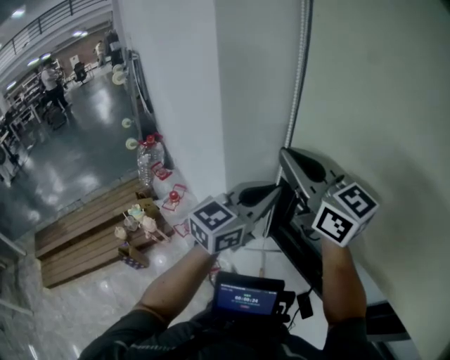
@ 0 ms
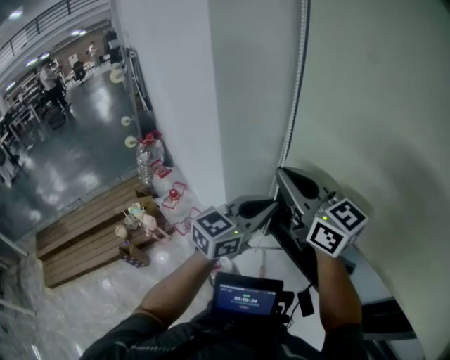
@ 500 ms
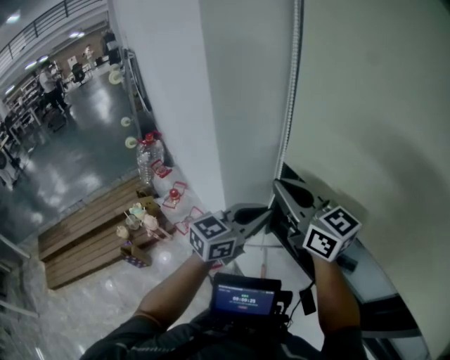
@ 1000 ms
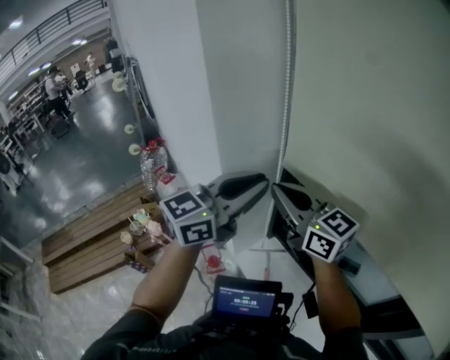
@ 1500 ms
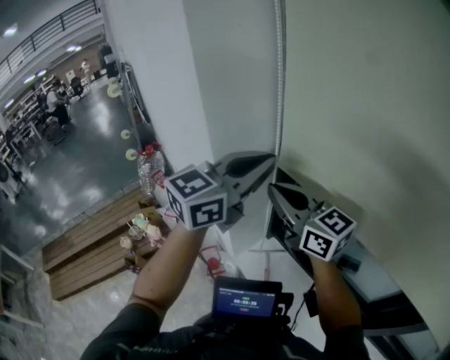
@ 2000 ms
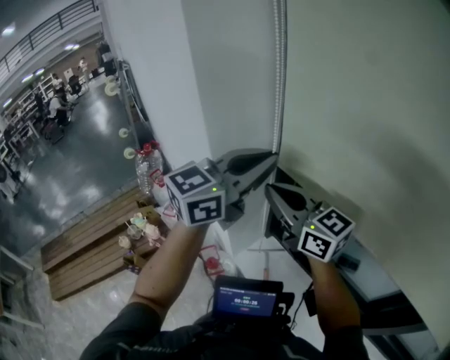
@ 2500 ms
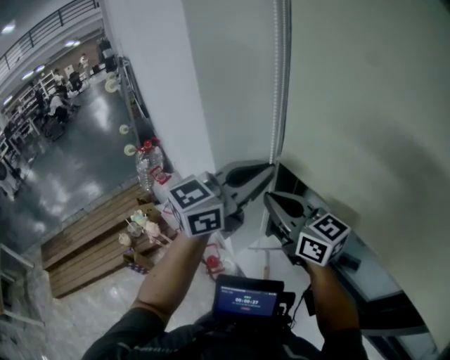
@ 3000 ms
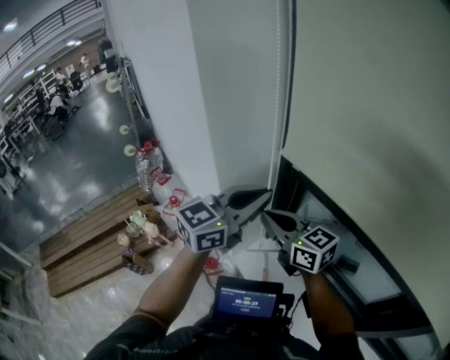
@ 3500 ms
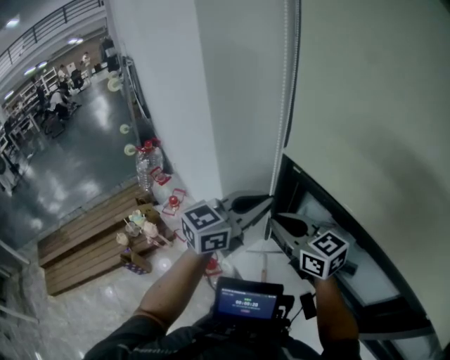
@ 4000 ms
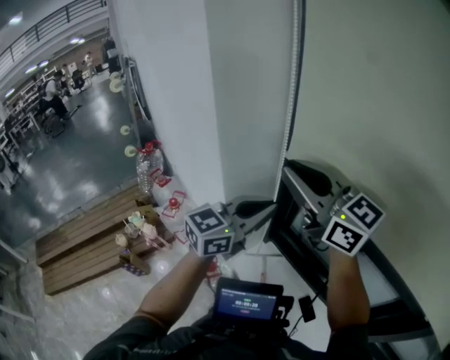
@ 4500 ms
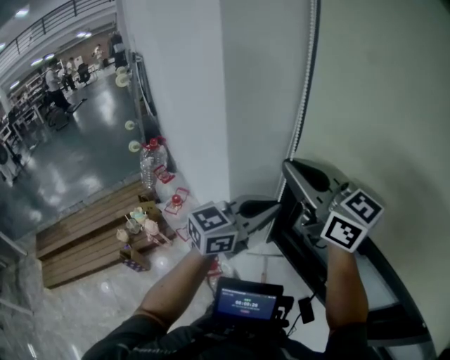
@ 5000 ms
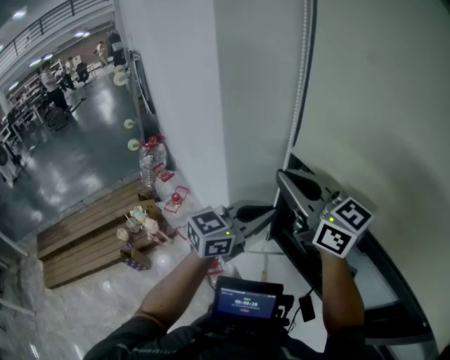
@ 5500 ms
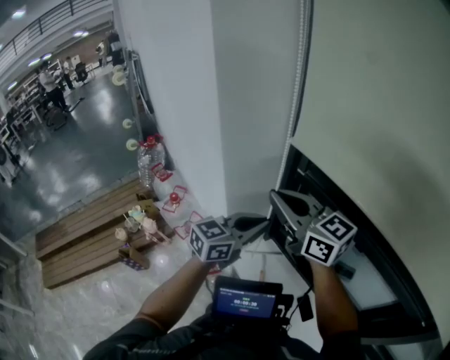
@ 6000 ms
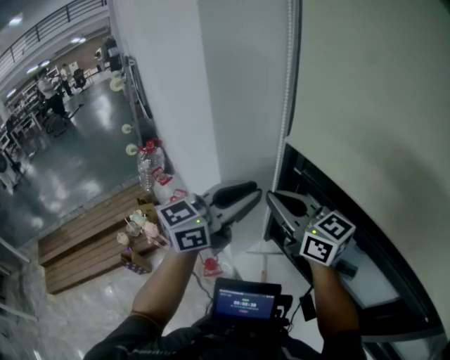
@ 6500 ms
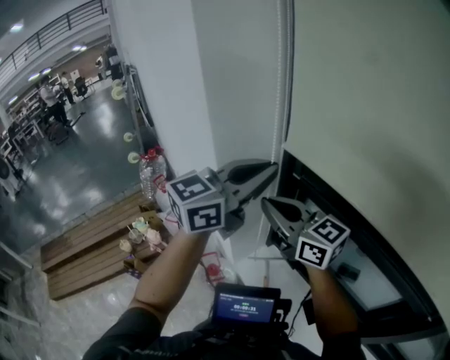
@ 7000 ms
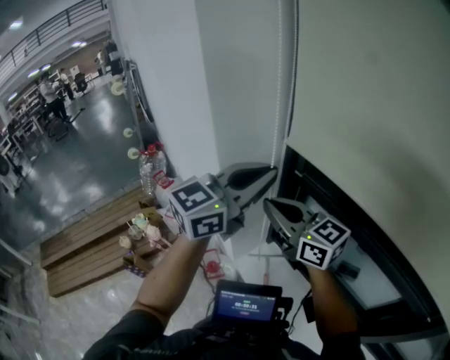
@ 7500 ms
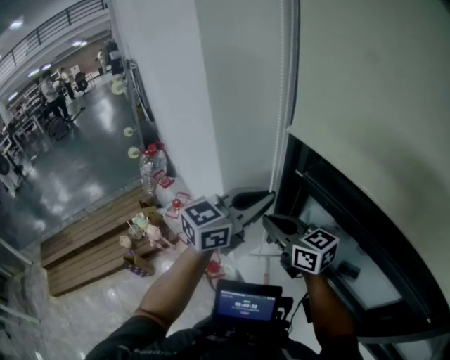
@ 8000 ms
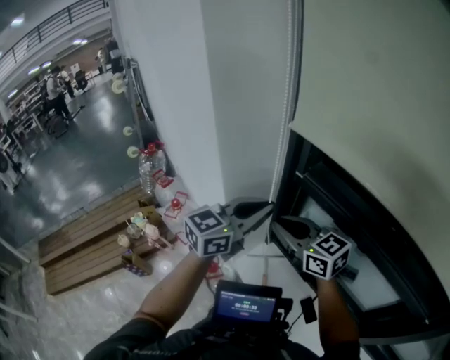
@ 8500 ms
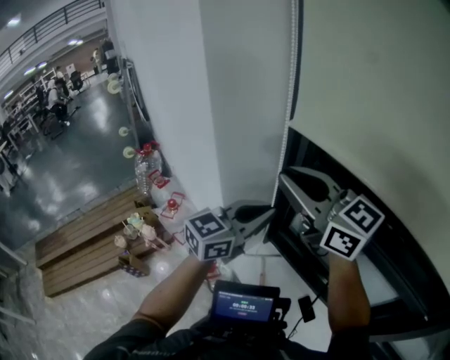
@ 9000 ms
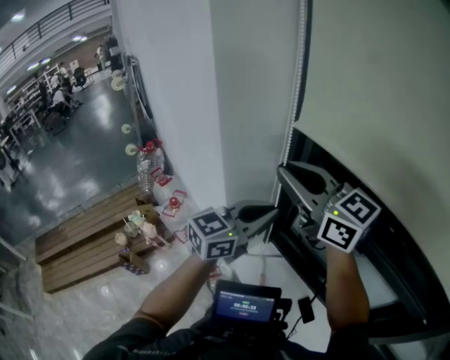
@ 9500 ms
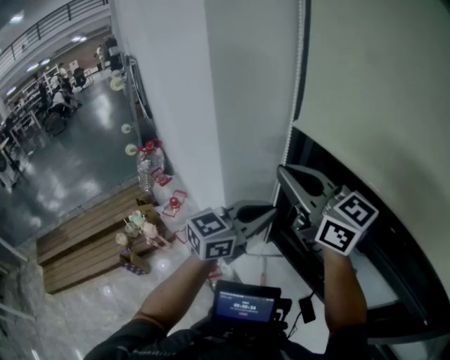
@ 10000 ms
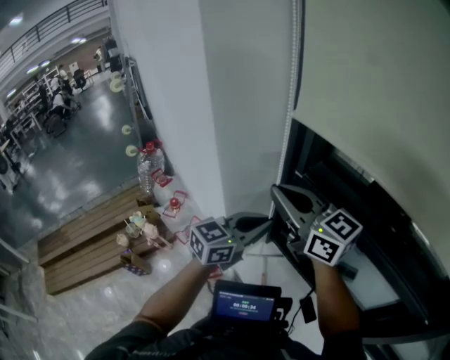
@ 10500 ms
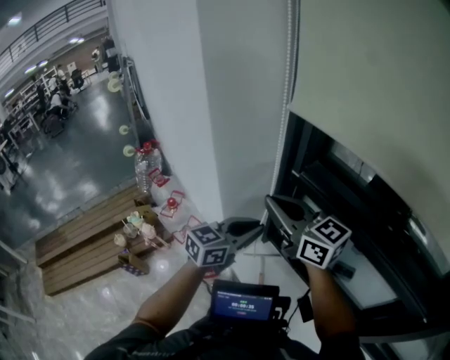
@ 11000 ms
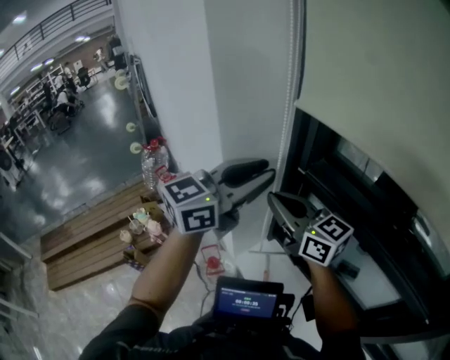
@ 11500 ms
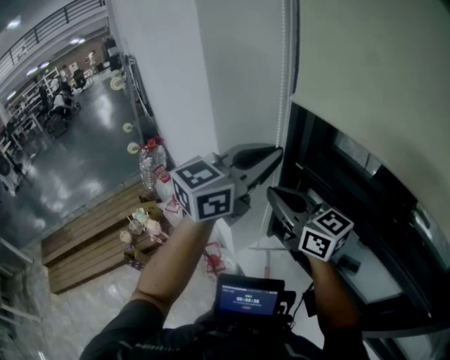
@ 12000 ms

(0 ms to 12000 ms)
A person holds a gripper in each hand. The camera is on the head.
0 ms - 2000 ms: The left gripper travels upward by roughly 10 cm, while the right gripper moves downward, roughly 10 cm.
2000 ms - 4000 ms: The grippers both shift downward by some 10 cm.
4000 ms - 6000 ms: The left gripper shifts approximately 10 cm downward. Meanwhile the right gripper is displaced upward by roughly 10 cm.
6000 ms - 8000 ms: The left gripper goes approximately 10 cm upward, and opens, then closes again; the right gripper heads downward, covering about 10 cm.
8000 ms - 10000 ms: The right gripper travels upward by roughly 20 cm.
10000 ms - 12000 ms: The right gripper shifts about 10 cm downward. The left gripper shifts some 10 cm upward, and opens and closes again.

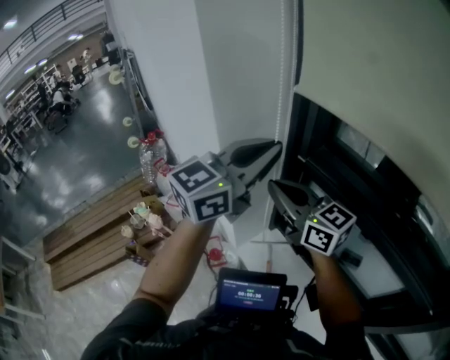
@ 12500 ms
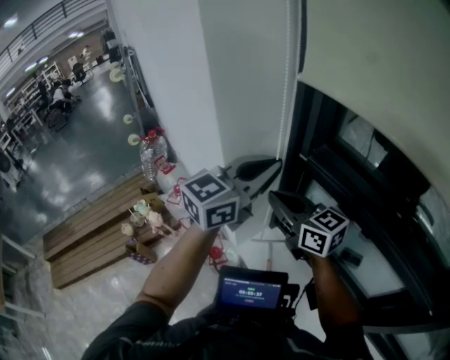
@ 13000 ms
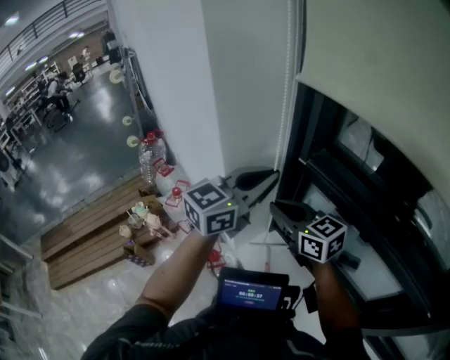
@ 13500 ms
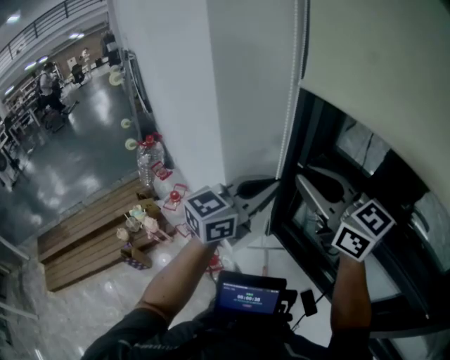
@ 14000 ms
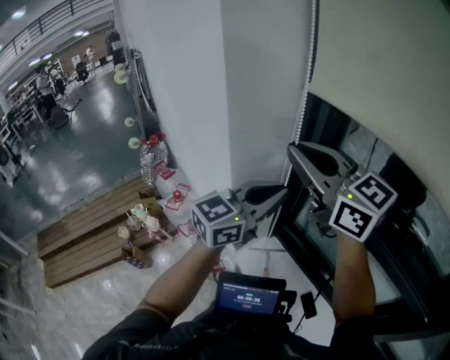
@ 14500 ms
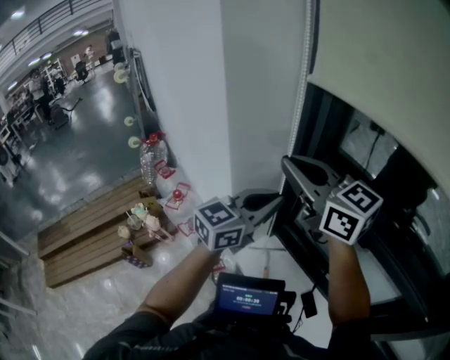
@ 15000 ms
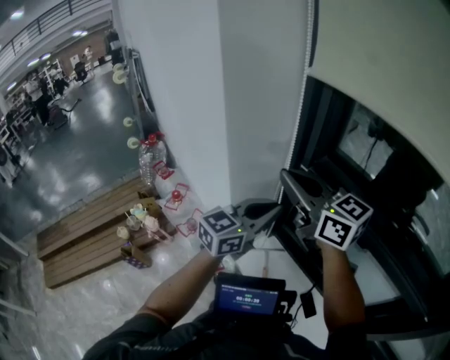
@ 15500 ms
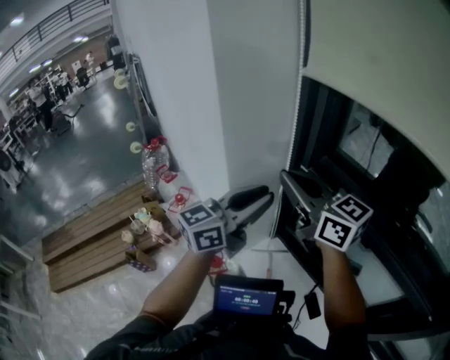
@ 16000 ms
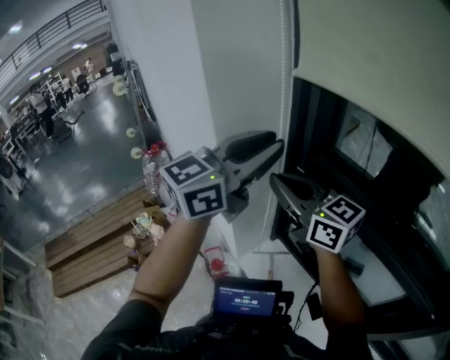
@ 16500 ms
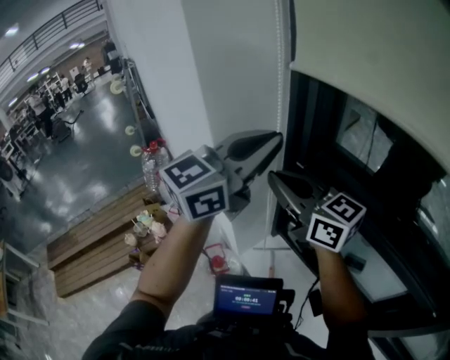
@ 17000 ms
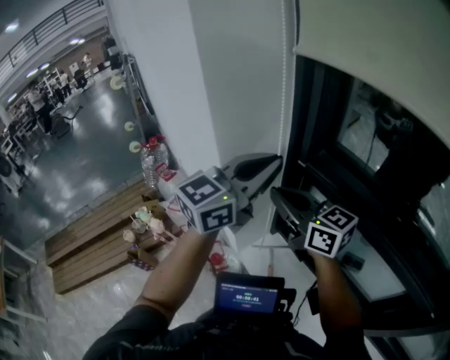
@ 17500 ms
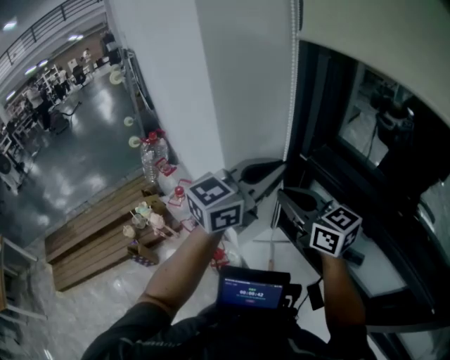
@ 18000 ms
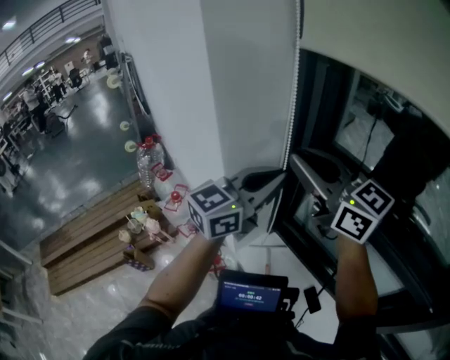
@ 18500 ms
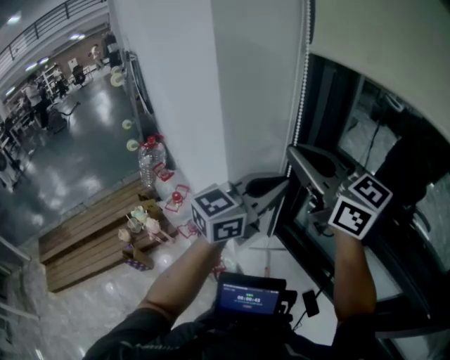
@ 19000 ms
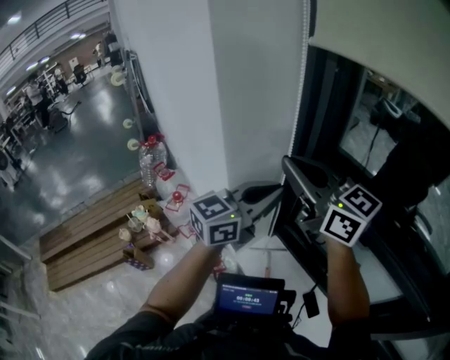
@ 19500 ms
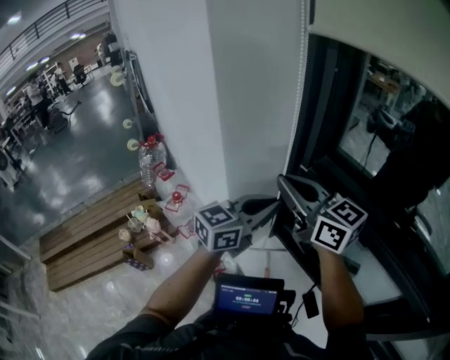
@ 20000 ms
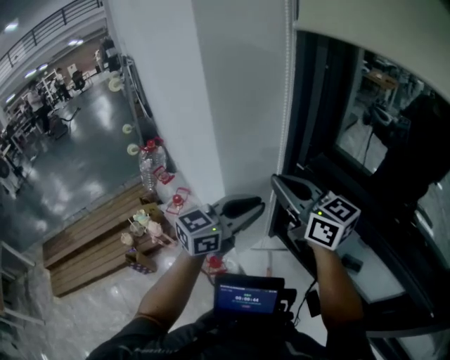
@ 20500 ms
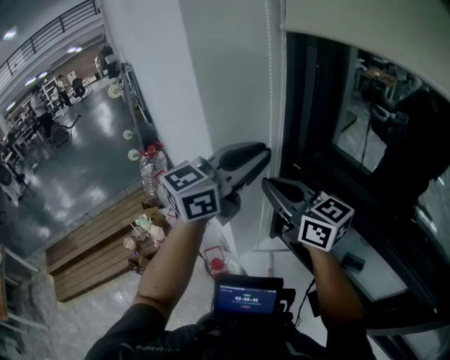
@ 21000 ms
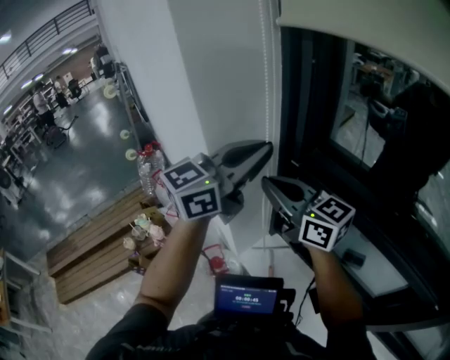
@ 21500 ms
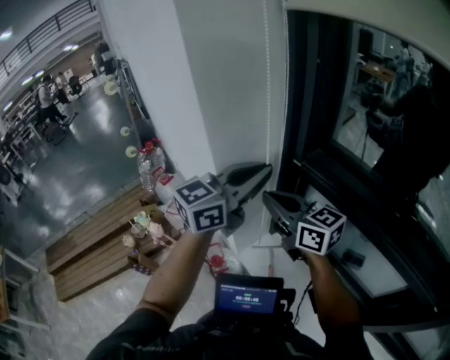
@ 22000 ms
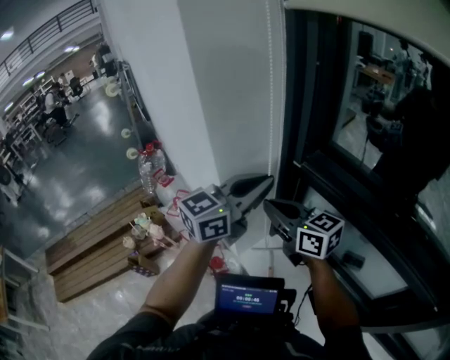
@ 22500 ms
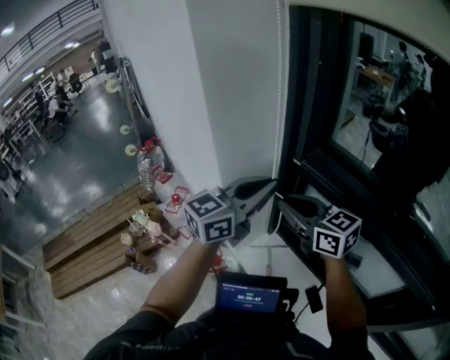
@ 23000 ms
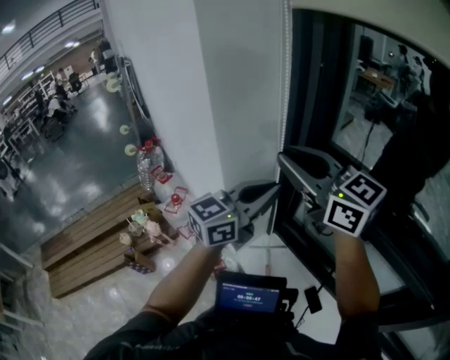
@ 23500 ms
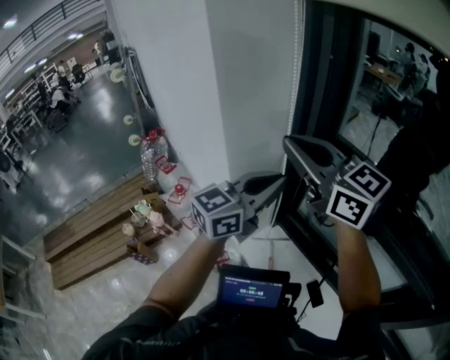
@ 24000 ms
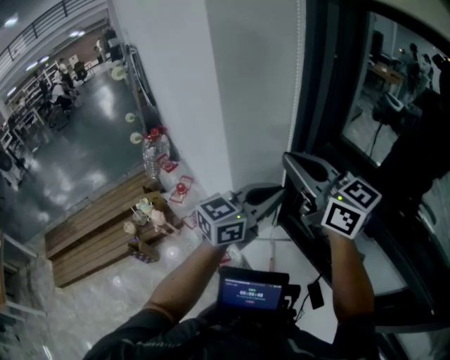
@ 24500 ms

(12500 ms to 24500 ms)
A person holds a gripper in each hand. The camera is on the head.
12500 ms - 14500 ms: The left gripper travels downward by about 10 cm, while the right gripper moves upward, roughly 15 cm.
14500 ms - 16500 ms: The left gripper moves upward, some 10 cm, and opens up, while the right gripper shifts roughly 10 cm downward.
16500 ms - 18500 ms: The right gripper is displaced upward by roughly 5 cm. The left gripper goes about 10 cm downward, and closes up.
18500 ms - 20500 ms: The two grippers go about 10 cm downward.
20500 ms - 22500 ms: The left gripper is displaced upward by roughly 5 cm. Meanwhile the right gripper heads downward, covering some 10 cm.
22500 ms - 24500 ms: The left gripper is displaced downward by about 5 cm. Meanwhile the right gripper is displaced upward by some 15 cm.

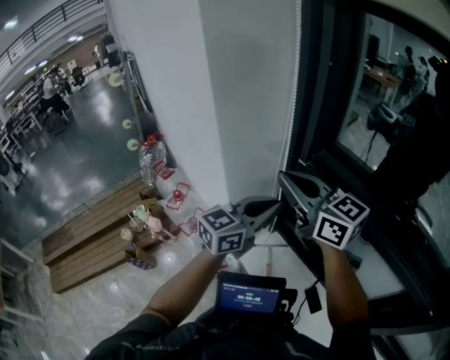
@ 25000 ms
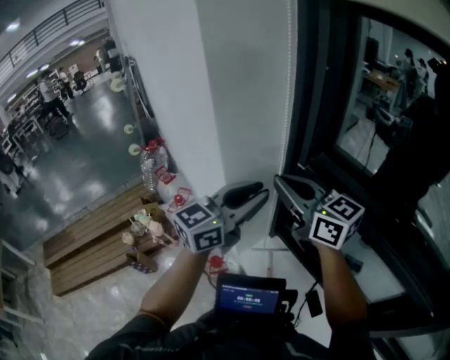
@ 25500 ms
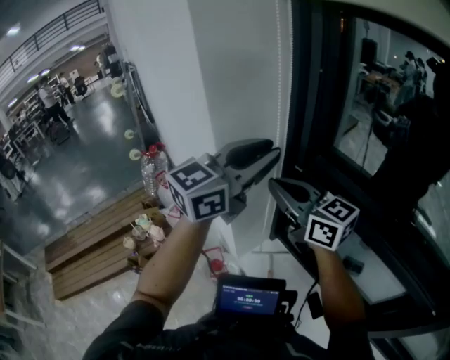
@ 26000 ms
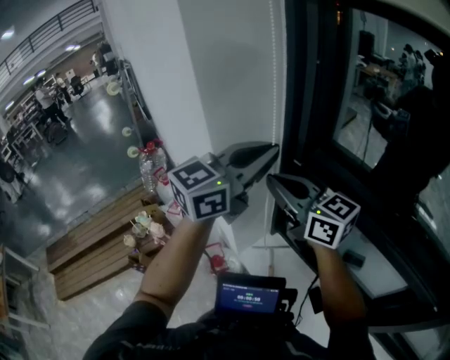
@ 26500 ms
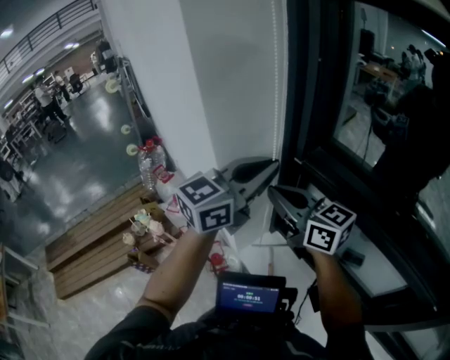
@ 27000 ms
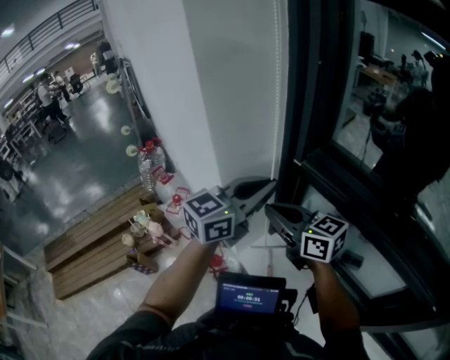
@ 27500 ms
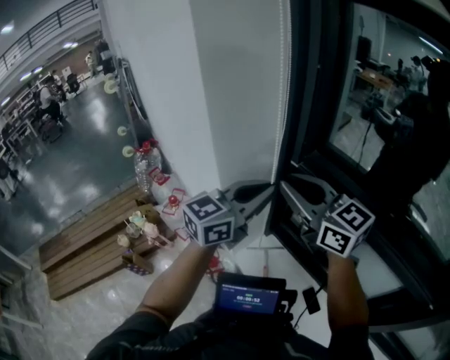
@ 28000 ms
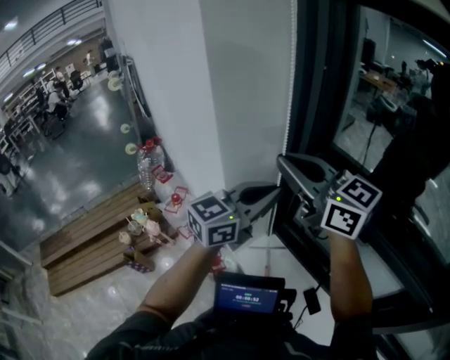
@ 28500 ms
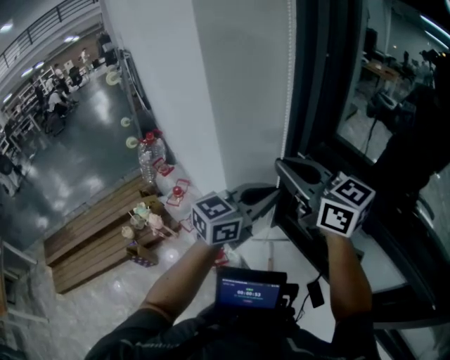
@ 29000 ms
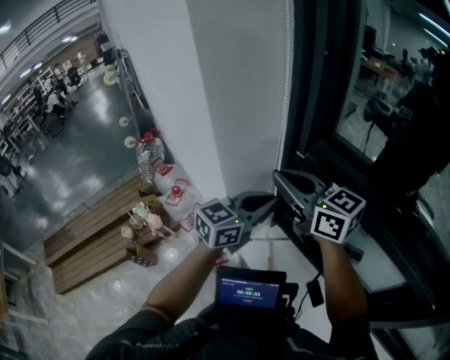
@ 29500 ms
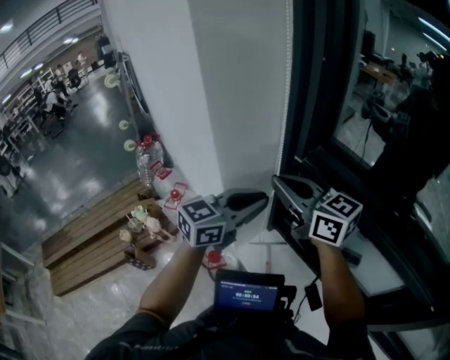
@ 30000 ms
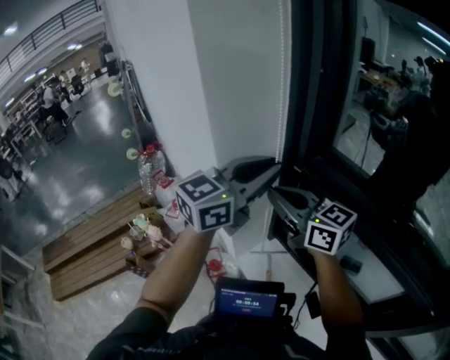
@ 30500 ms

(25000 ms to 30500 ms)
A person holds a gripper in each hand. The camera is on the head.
25000 ms - 27000 ms: The left gripper moves upward, roughly 10 cm, and opens, then closes again.
27000 ms - 28500 ms: The left gripper shifts approximately 5 cm downward; the right gripper travels upward by roughly 10 cm.
28500 ms - 30500 ms: The left gripper shifts roughly 5 cm upward. The right gripper heads downward, covering about 10 cm.
